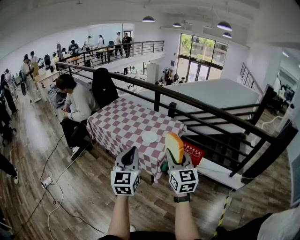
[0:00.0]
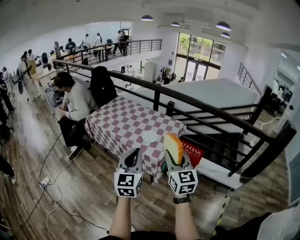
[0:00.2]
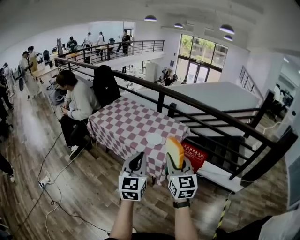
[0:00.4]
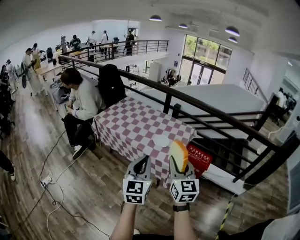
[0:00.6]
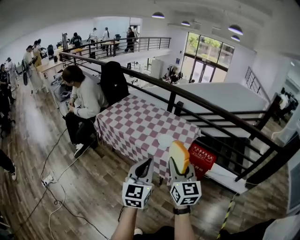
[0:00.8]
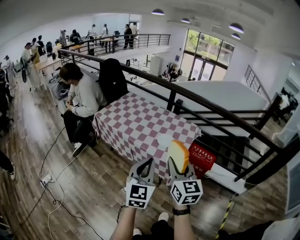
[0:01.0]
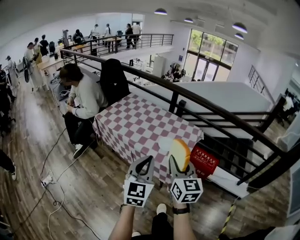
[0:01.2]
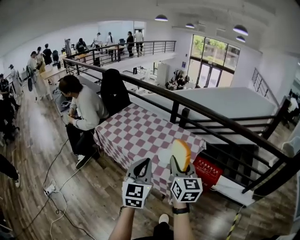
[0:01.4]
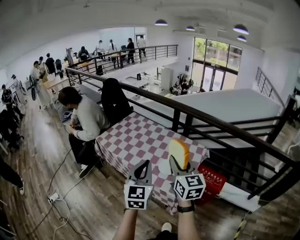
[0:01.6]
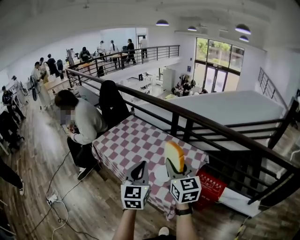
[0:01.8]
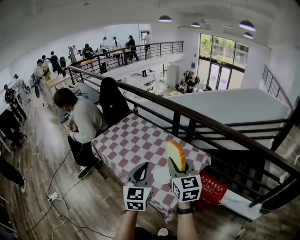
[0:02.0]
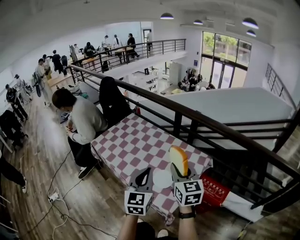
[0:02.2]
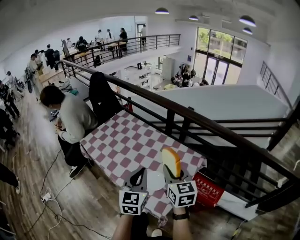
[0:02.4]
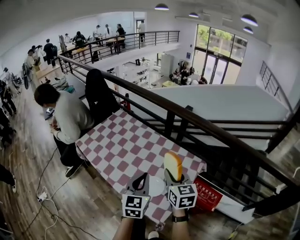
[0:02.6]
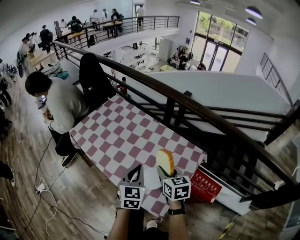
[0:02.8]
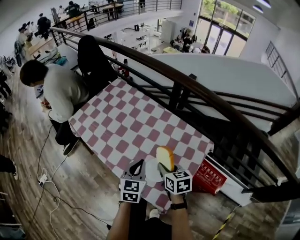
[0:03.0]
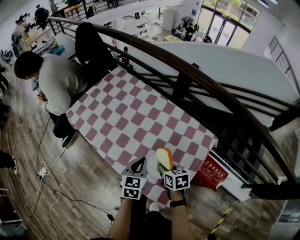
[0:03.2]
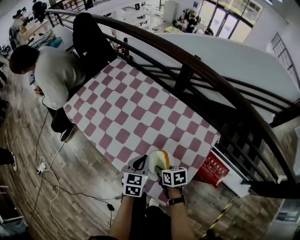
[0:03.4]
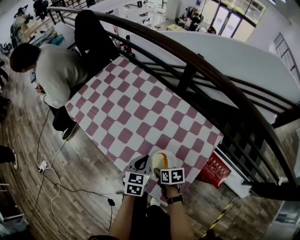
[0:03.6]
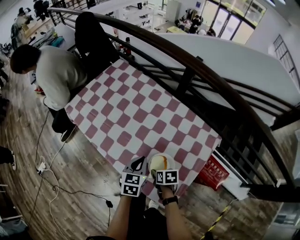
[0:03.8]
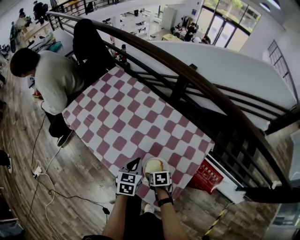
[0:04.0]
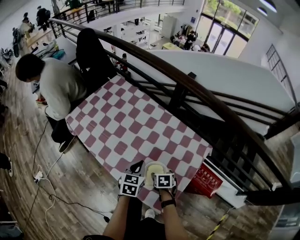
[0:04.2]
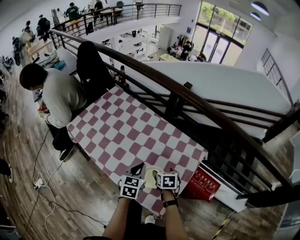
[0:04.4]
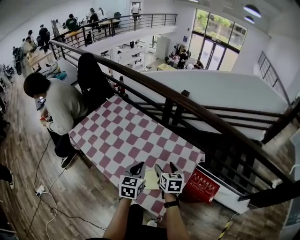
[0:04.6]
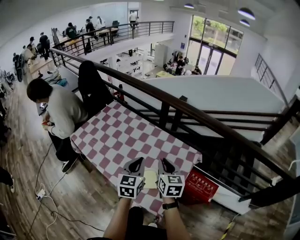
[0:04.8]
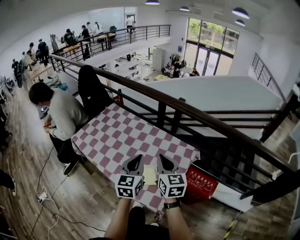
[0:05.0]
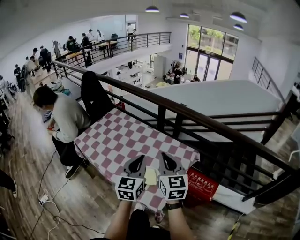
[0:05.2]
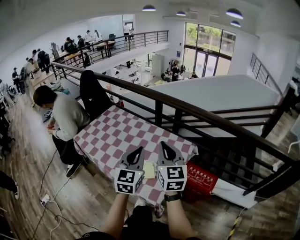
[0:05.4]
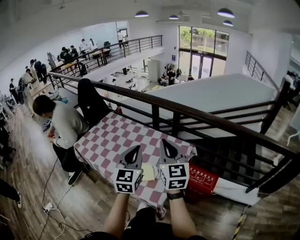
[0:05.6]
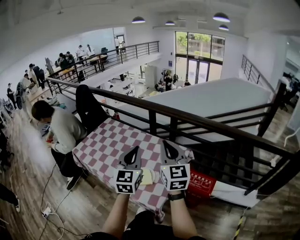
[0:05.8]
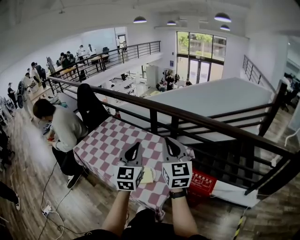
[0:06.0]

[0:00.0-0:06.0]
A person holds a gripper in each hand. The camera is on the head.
0:00.0 to 0:01.6: The left gripper moves forward, about 25 cm. The right gripper moves forward and to the left, roughly 30 cm.
0:01.6 to 0:03.0: The grippers both shift downward and forward by some 35 cm. The left gripper turns by some 30 degrees, while the right gripper points its fingers about 40 degrees further downward.
0:03.0 to 0:04.4: The right gripper moves downward and to the right, approximately 10 cm, rotates some 20 degrees, and opens. Meanwhile the left gripper reaches approximately 10 cm downward, then returns.
0:04.4 to 0:06.0: Both grippers move upward, about 35 cm. The left gripper tilts its fingers approximately 30 degrees upward, while the right gripper angles its fingers upward, by about 60 degrees, and closes.

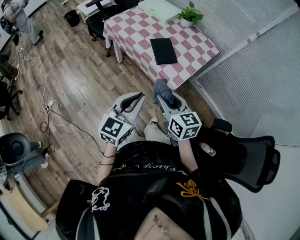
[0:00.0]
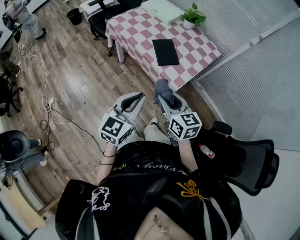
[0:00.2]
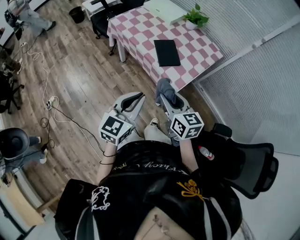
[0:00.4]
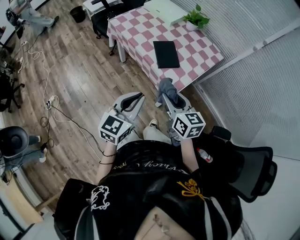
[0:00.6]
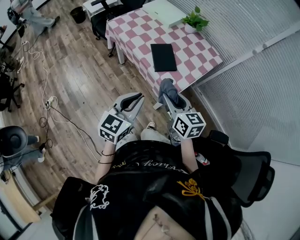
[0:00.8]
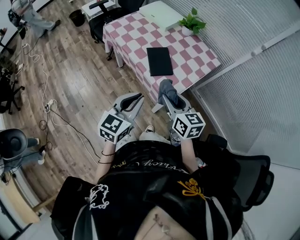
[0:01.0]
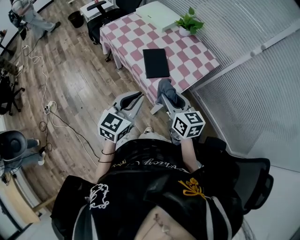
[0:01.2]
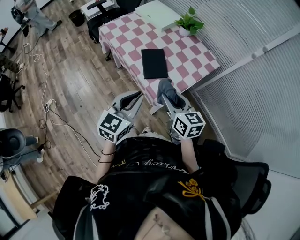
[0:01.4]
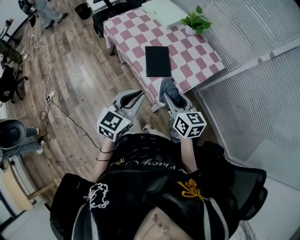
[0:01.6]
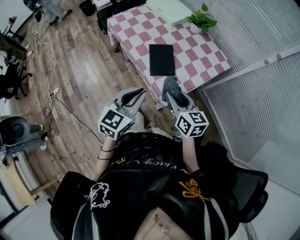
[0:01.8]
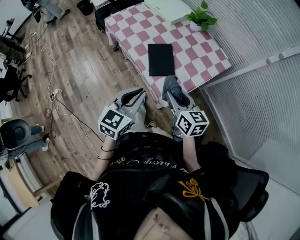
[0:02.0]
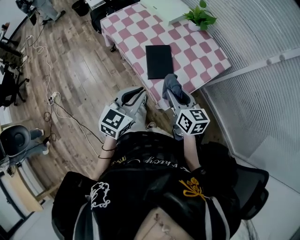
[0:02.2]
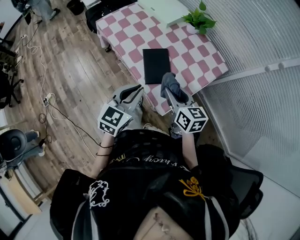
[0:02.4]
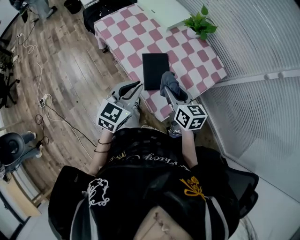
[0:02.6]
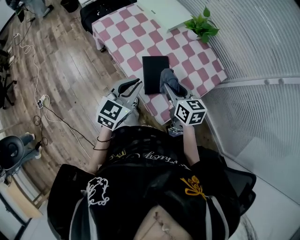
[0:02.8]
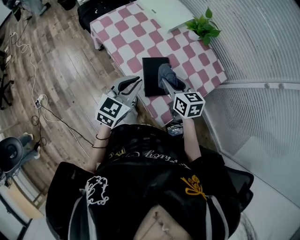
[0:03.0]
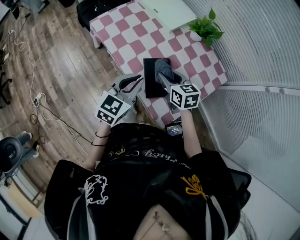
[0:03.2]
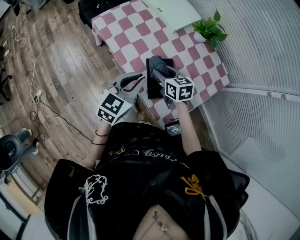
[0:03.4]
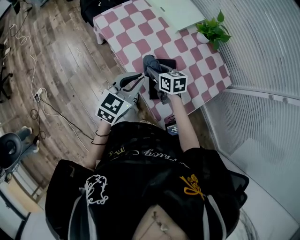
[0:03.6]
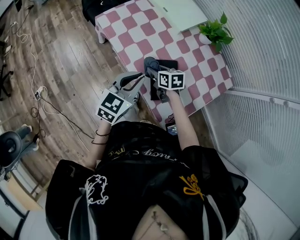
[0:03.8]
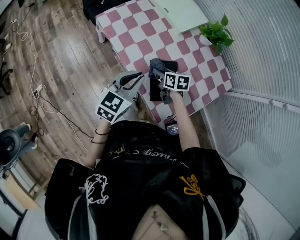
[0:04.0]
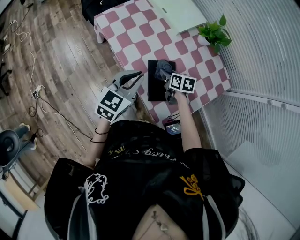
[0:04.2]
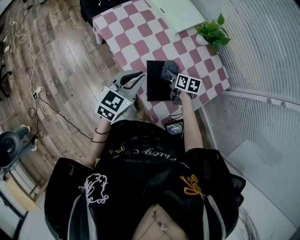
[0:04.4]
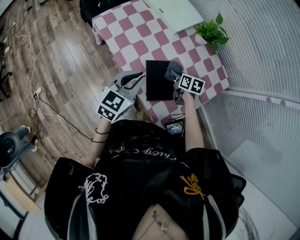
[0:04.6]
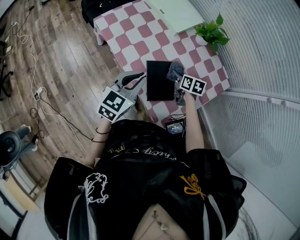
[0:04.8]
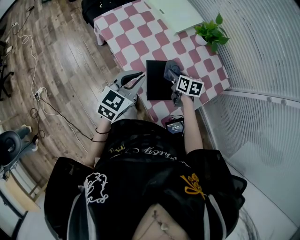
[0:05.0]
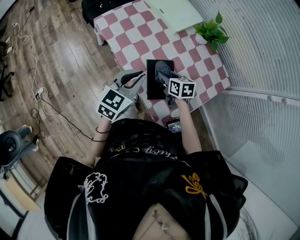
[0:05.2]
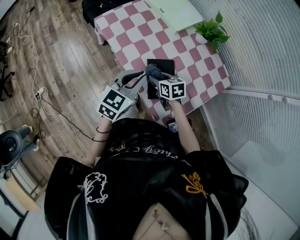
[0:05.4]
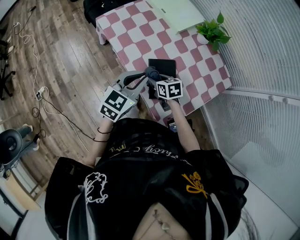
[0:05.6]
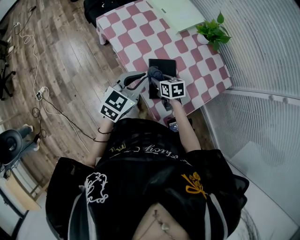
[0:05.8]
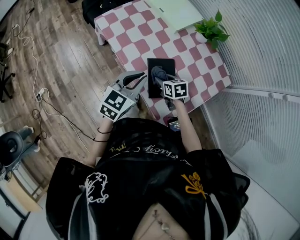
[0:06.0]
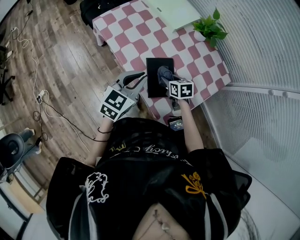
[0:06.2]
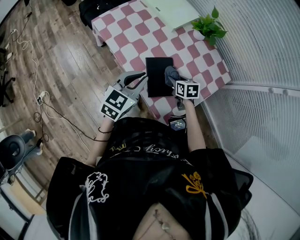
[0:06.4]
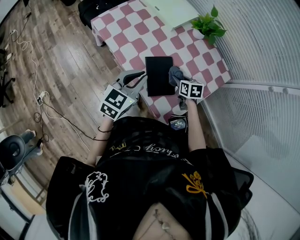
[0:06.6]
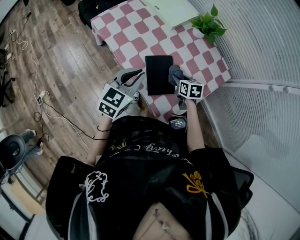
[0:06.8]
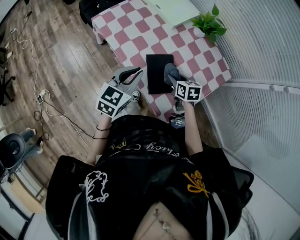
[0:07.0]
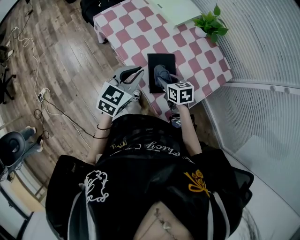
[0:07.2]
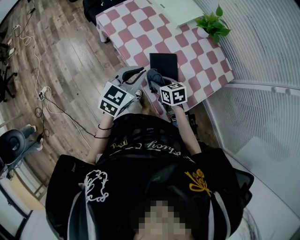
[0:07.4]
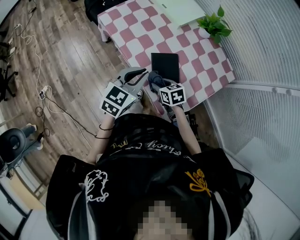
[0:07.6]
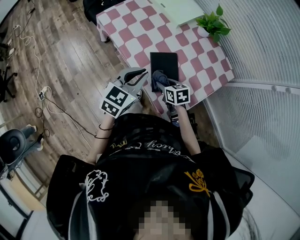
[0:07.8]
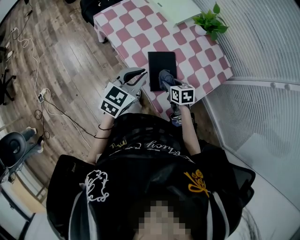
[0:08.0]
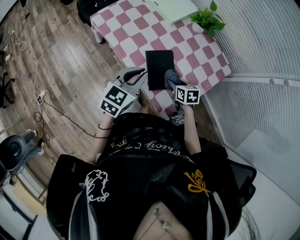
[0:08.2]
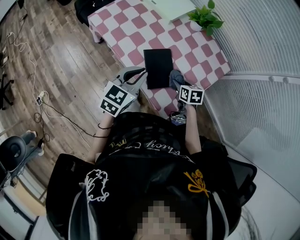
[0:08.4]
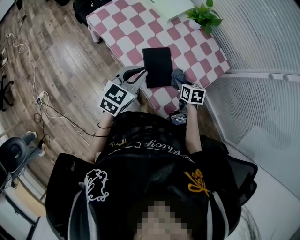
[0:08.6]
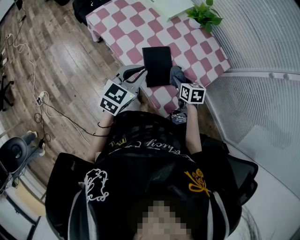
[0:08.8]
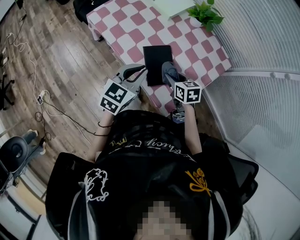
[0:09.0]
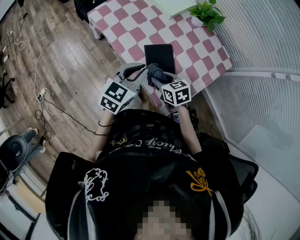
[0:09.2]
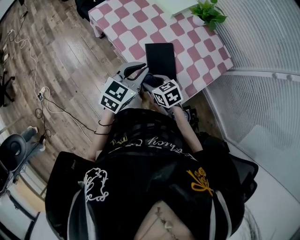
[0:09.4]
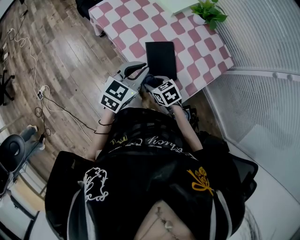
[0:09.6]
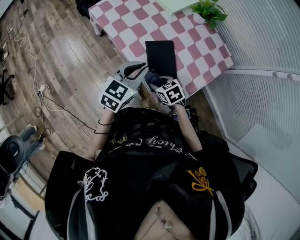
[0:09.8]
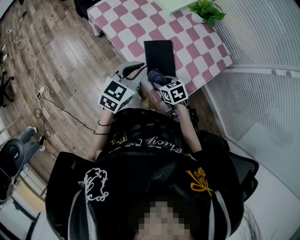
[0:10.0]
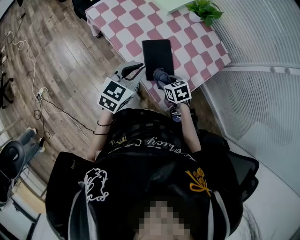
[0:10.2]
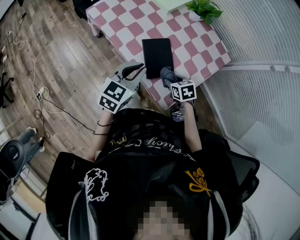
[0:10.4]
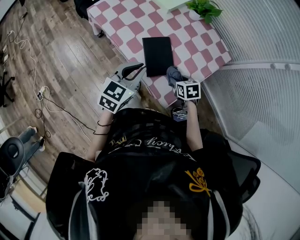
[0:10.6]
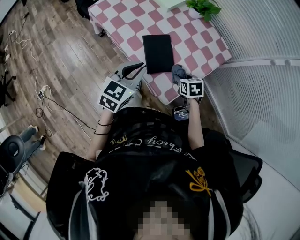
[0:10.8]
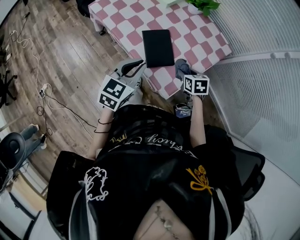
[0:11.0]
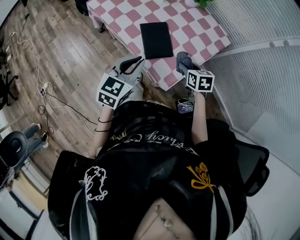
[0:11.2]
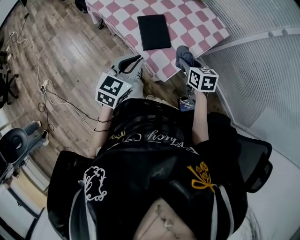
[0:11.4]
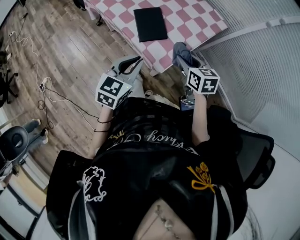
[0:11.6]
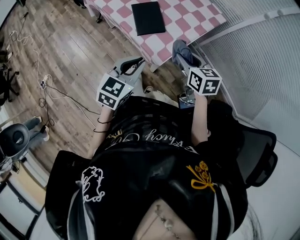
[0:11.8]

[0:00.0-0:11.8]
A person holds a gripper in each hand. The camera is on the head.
0:00.0 to 0:01.4: Both grippers travel together forward and to the right, some 15 cm.
0:01.4 to 0:03.0: Both grippers travel together forward, approximately 20 cm.
0:03.0 to 0:04.4: The right gripper travels downward and forward by roughly 20 cm, and changes its angle by some 20 degrees, while the left gripper goes about 5 cm forward.
0:04.4 to 0:06.0: The right gripper travels backward and to the left by about 10 cm.
0:06.0 to 0:07.4: The right gripper moves backward, some 5 cm, and moves roughly 10 cm to the right and comes back.
0:07.4 to 0:08.8: The right gripper travels to the right by roughly 15 cm, and changes its angle by roughly 20 degrees.
0:08.8 to 0:10.4: The right gripper goes about 5 cm backward, and goes to the left and returns, some 15 cm each way.
0:10.4 to 0:11.8: The right gripper heads upward, backward and to the right, covering approximately 20 cm, and turns by some 30 degrees; the left gripper goes approximately 20 cm backward and to the right.

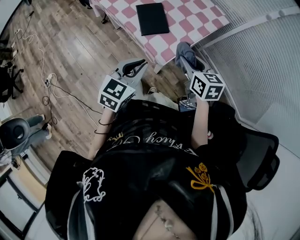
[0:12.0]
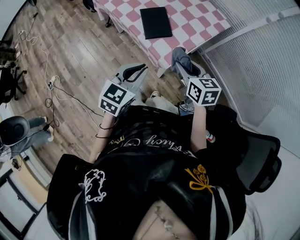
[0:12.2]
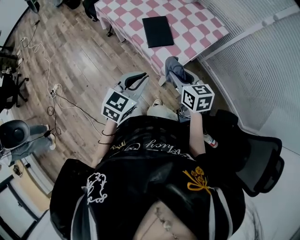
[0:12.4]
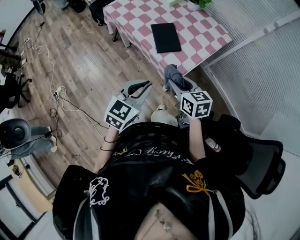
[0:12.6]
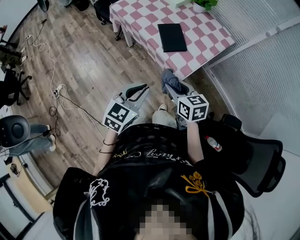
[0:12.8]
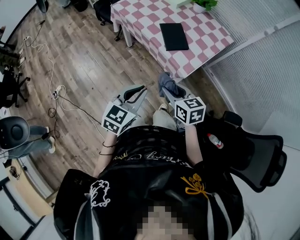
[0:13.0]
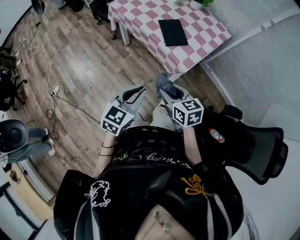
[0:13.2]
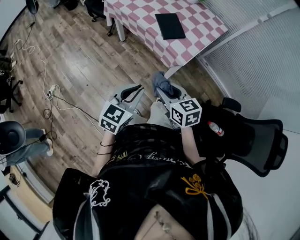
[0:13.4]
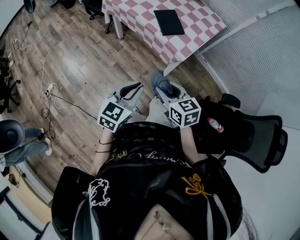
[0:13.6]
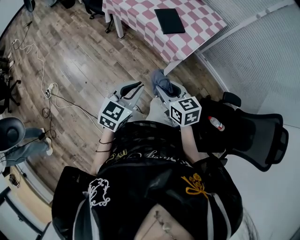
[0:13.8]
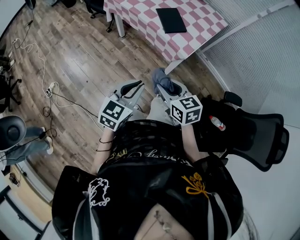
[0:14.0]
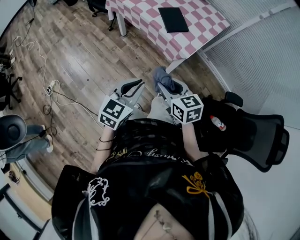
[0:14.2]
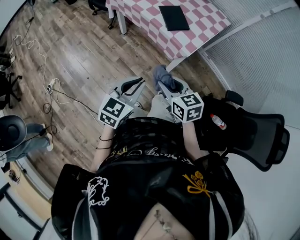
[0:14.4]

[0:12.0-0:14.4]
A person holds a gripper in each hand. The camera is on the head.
0:12.0 to 0:13.2: The two grippers go some 25 cm to the left and backward.
0:13.2 to 0:14.4: The left gripper ends up roughly 5 cm from where it was, while the right gripper travels backward by roughly 5 cm.

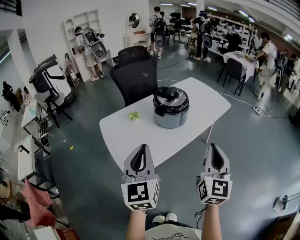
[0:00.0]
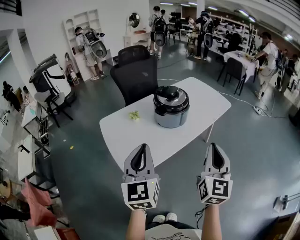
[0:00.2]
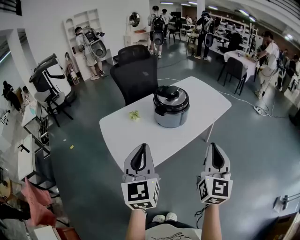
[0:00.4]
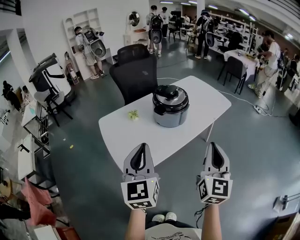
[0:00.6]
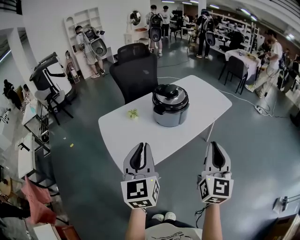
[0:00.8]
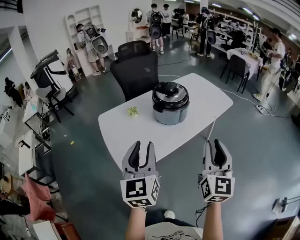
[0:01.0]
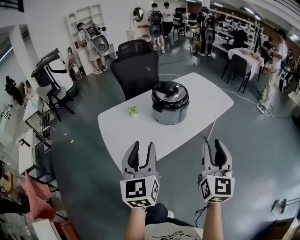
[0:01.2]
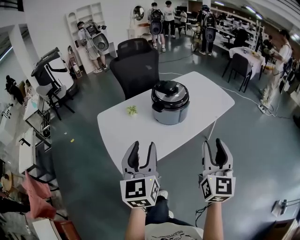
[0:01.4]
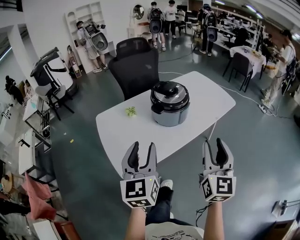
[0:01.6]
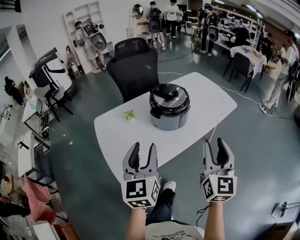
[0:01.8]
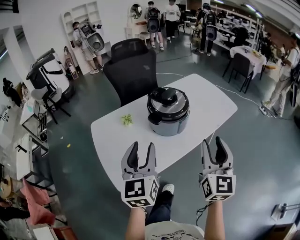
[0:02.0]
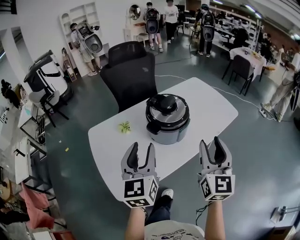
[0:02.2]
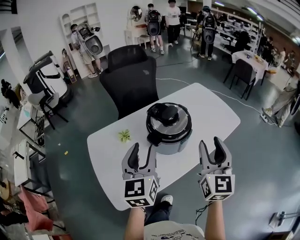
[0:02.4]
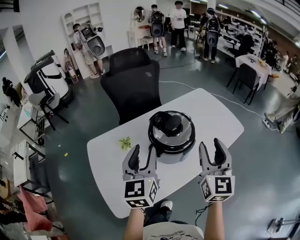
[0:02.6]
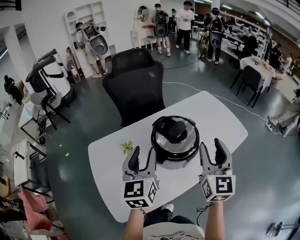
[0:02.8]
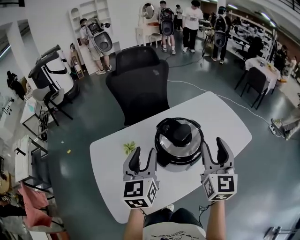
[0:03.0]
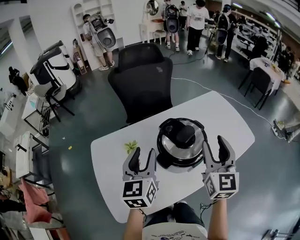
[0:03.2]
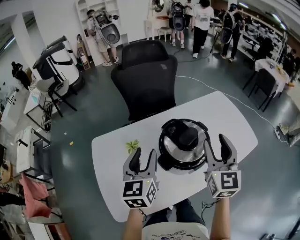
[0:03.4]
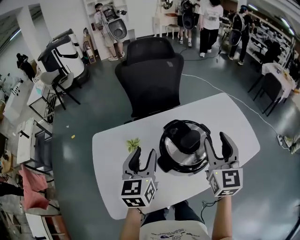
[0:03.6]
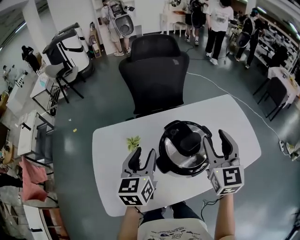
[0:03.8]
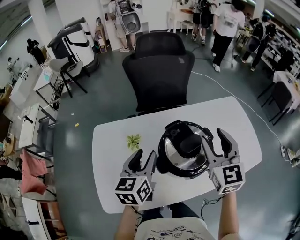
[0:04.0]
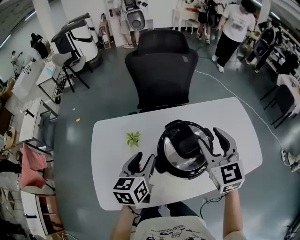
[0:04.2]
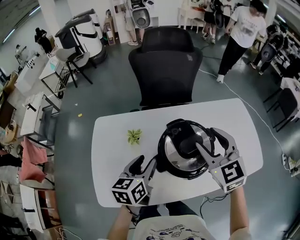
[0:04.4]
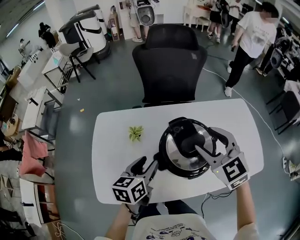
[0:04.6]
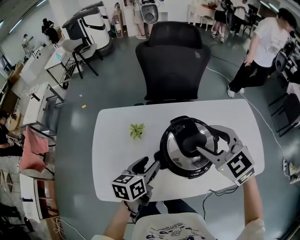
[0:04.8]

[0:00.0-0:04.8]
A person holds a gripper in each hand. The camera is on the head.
0:00.0 to 0:01.6: Both grippers travel together forward, approximately 5 cm. The right gripper opens its fingers, while the left gripper opens.
0:01.6 to 0:03.2: The grippers both shift forward by approximately 40 cm.
0:03.2 to 0:04.8: The right gripper heads forward, covering approximately 10 cm, and tips its fingers downward by roughly 30 degrees. The left gripper travels downward by some 15 cm, and changes its angle by approximately 30 degrees.
